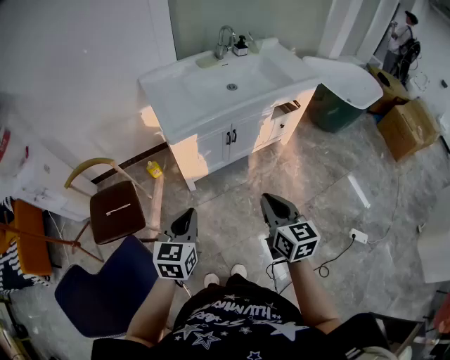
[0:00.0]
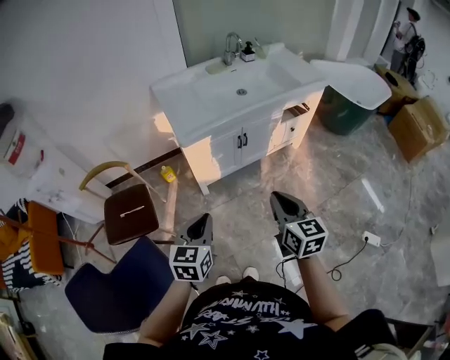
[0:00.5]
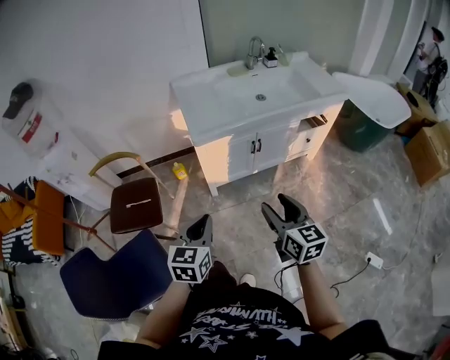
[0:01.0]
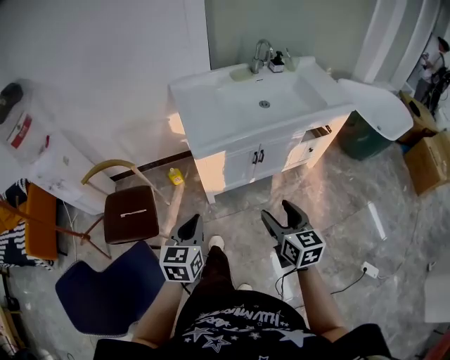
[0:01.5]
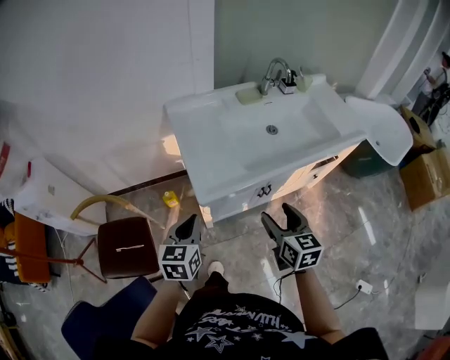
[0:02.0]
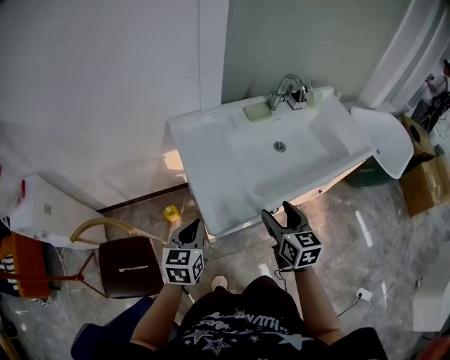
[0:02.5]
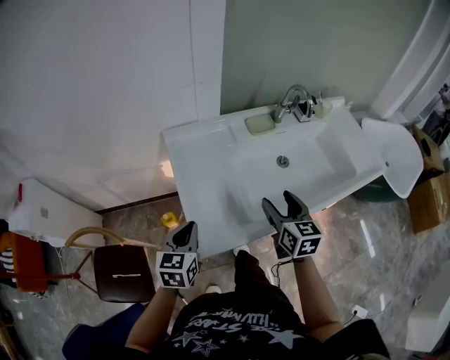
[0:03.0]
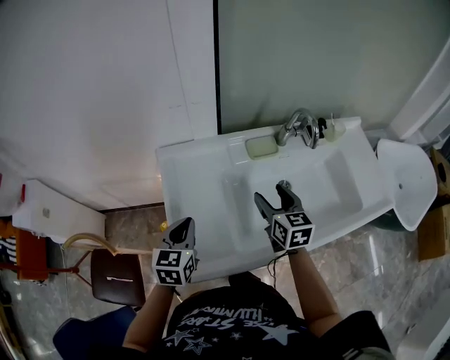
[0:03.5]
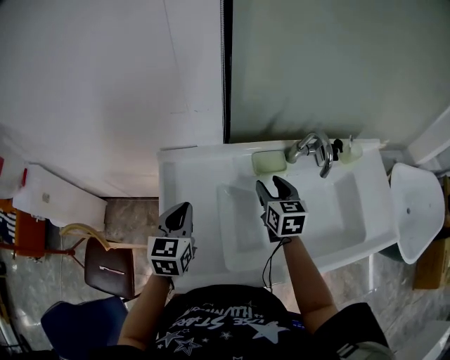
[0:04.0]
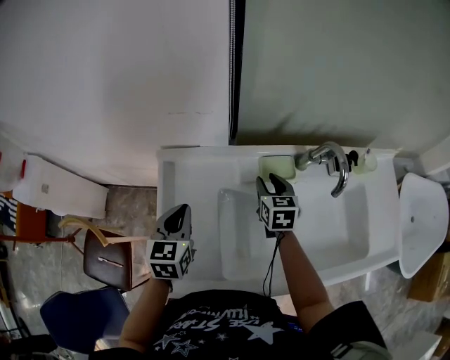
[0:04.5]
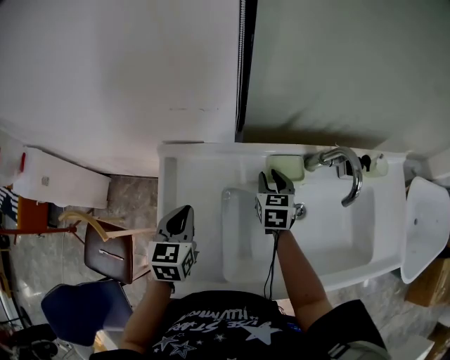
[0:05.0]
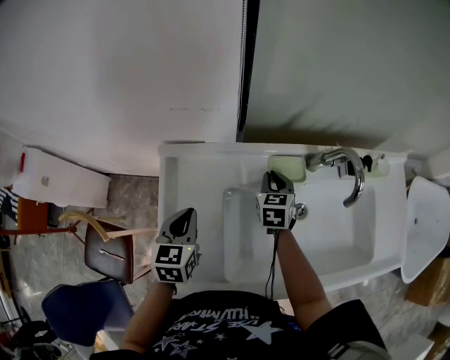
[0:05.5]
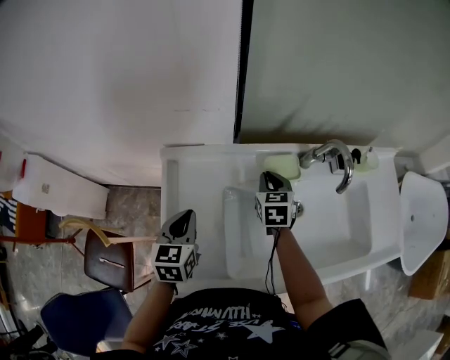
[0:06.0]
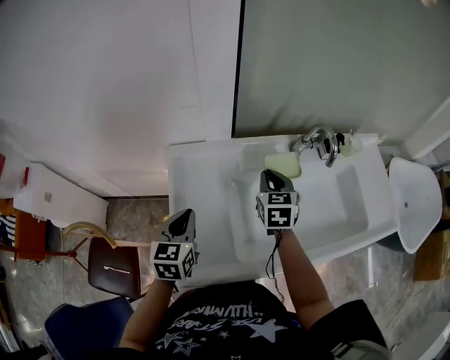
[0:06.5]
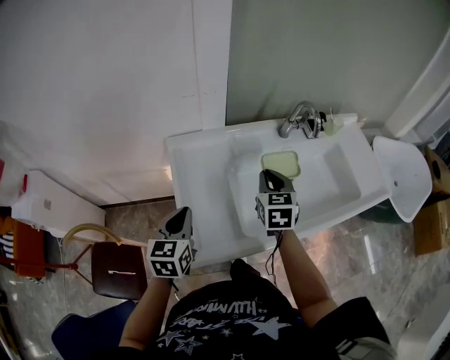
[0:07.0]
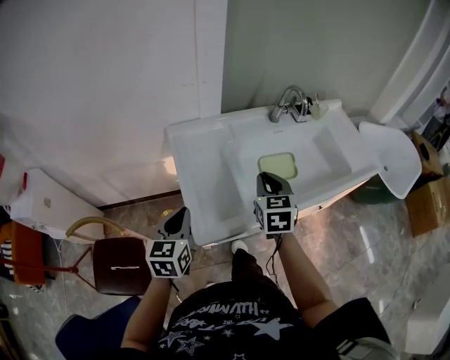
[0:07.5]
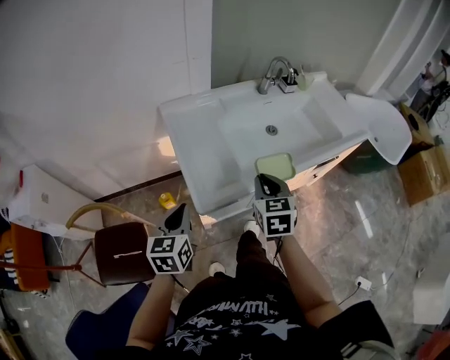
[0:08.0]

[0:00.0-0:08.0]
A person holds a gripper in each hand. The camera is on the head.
0:00.0 to 0:02.0: Both grippers travel together forward, some 30 cm. The right gripper opens its fingers.
0:02.0 to 0:04.0: Both grippers move forward, about 40 cm.
0:04.0 to 0:06.0: The right gripper heads forward and downward, covering approximately 10 cm, and closes up.
0:06.0 to 0:08.0: The two grippers go approximately 35 cm backward.

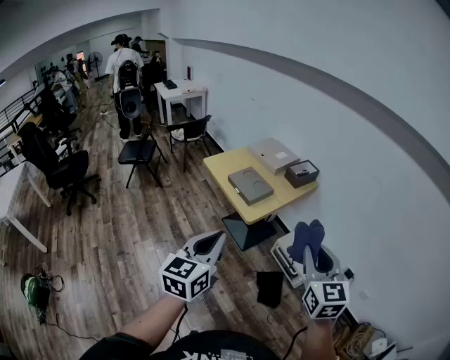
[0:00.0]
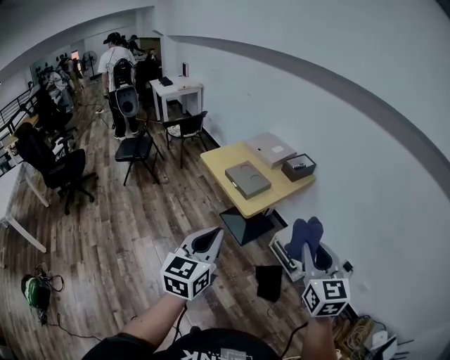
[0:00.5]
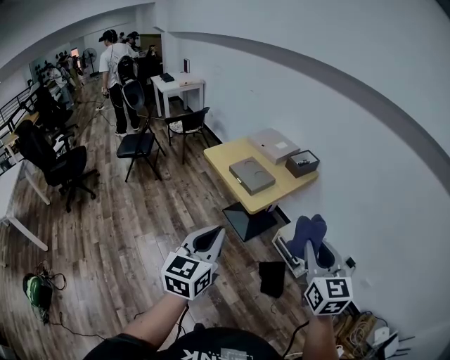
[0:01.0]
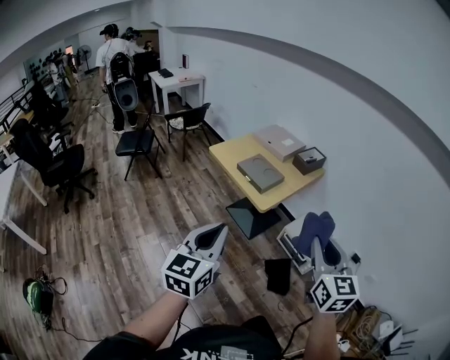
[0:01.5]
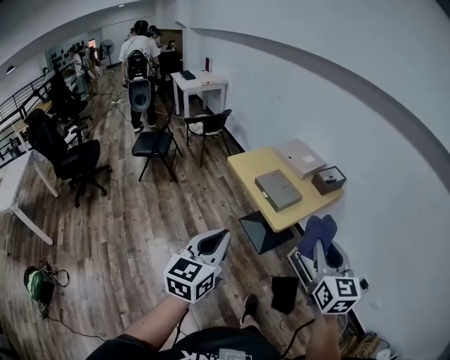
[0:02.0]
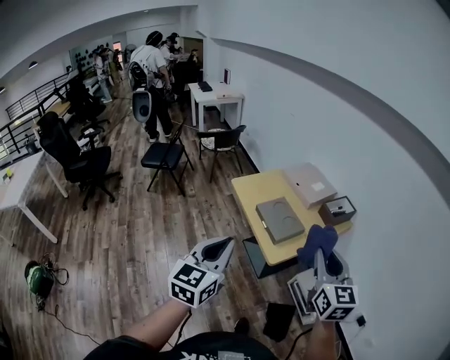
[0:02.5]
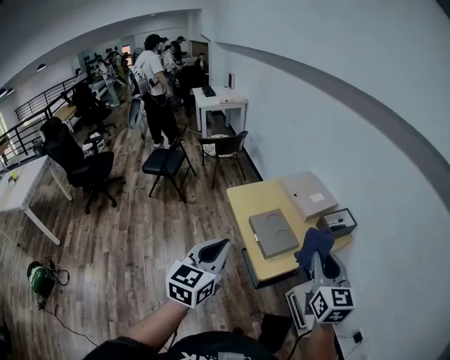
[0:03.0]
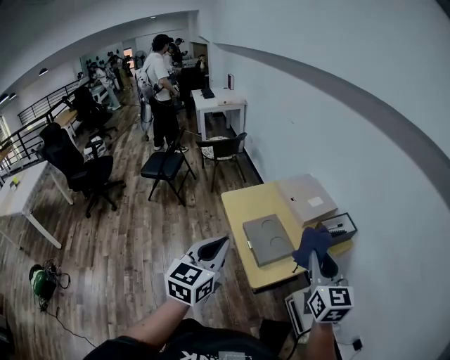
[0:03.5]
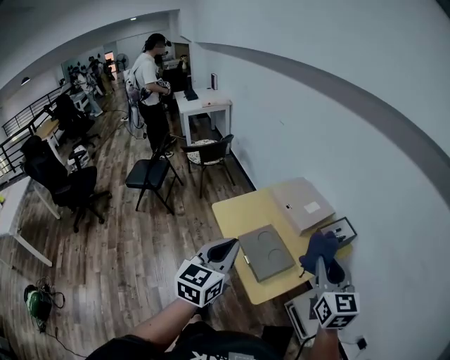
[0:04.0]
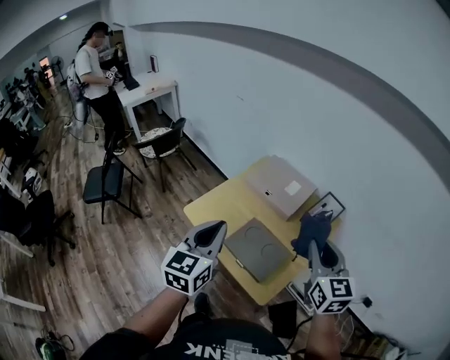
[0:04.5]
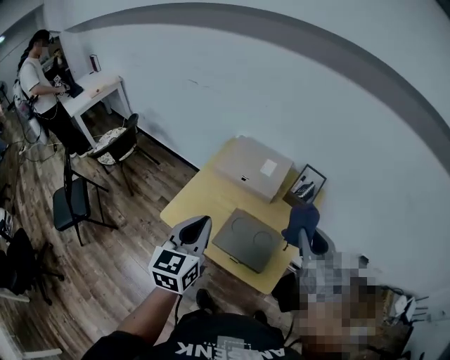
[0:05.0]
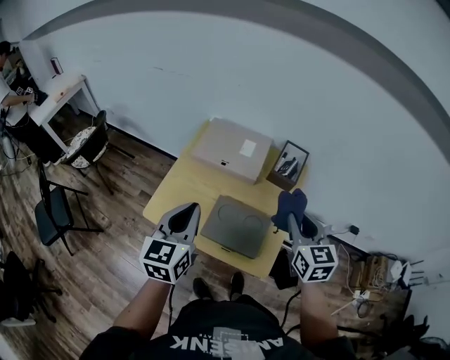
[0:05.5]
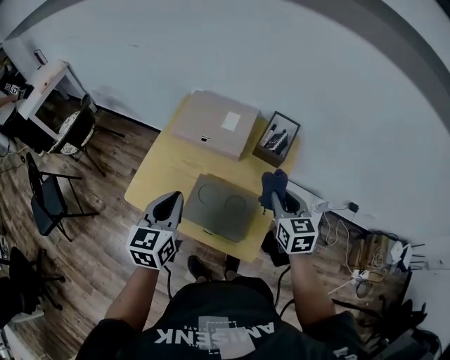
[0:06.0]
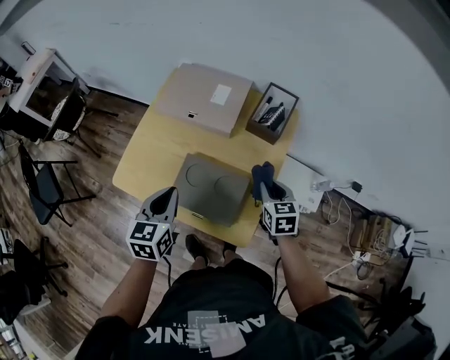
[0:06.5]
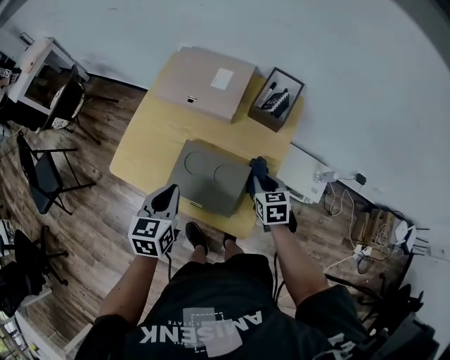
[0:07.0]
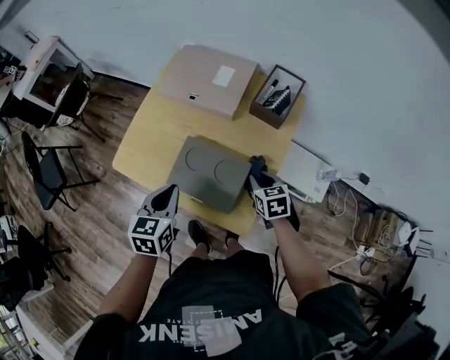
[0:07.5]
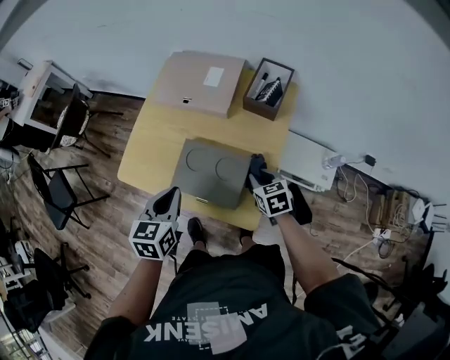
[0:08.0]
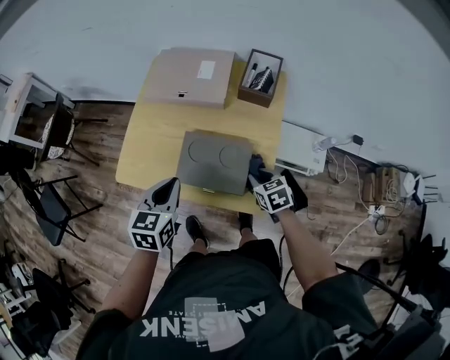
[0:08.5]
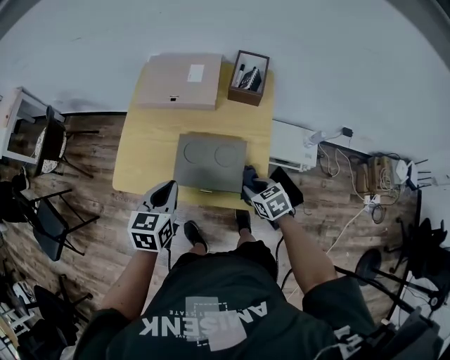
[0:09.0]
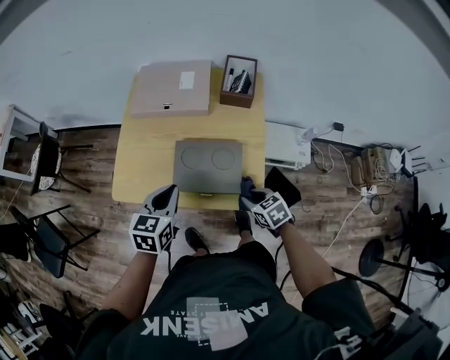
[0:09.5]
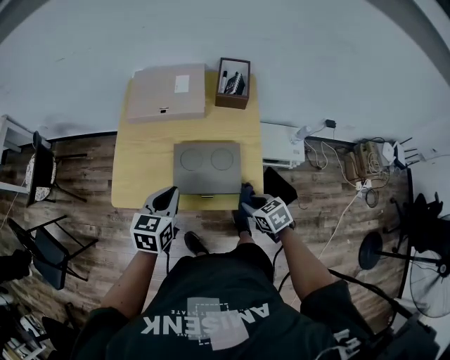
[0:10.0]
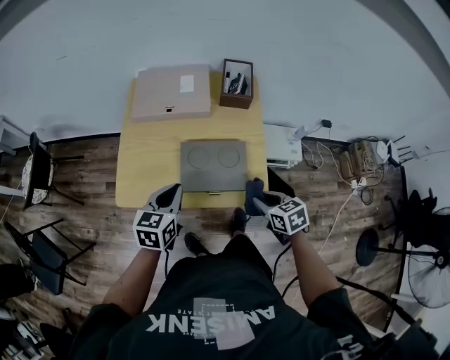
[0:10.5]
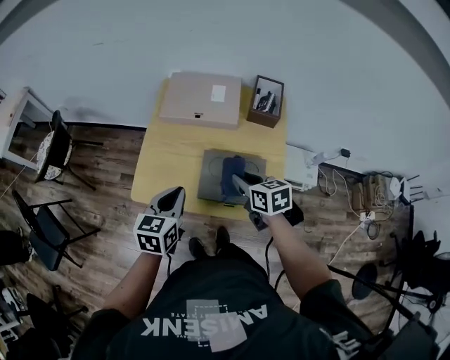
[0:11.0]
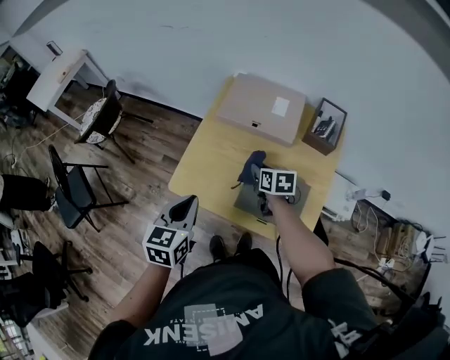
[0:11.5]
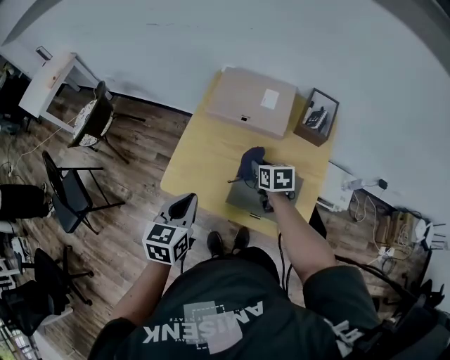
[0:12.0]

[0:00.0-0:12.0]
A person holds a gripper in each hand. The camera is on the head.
0:00.0 to 0:02.0: The left gripper is displaced to the left by some 15 cm. The right gripper is displaced to the left and forward by approximately 15 cm.
0:02.0 to 0:04.0: The grippers both shift forward by some 35 cm.
0:04.0 to 0:06.0: The right gripper is displaced downward by approximately 20 cm, and rotates some 40 degrees, while the left gripper moves some 25 cm, and turns by approximately 30 degrees.
0:06.0 to 0:08.0: The left gripper moves downward and backward, some 10 cm; the right gripper heads downward, covering approximately 20 cm, and swivels roughly 20 degrees.
0:08.0 to 0:10.0: The left gripper turns by some 20 degrees, while the right gripper shifts roughly 15 cm backward and to the left.
0:10.0 to 0:12.0: The left gripper moves to the left, about 10 cm, and changes its angle by roughly 20 degrees, while the right gripper shifts about 30 cm forward and to the left.

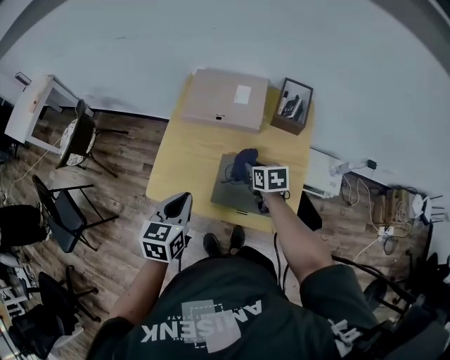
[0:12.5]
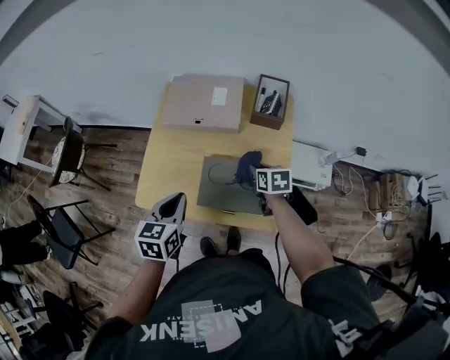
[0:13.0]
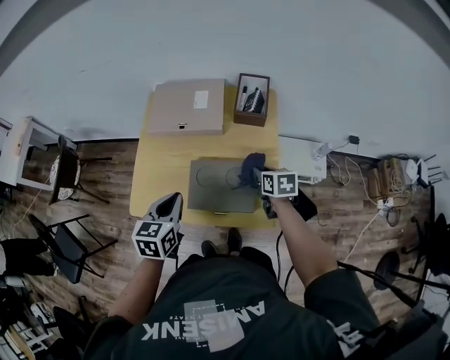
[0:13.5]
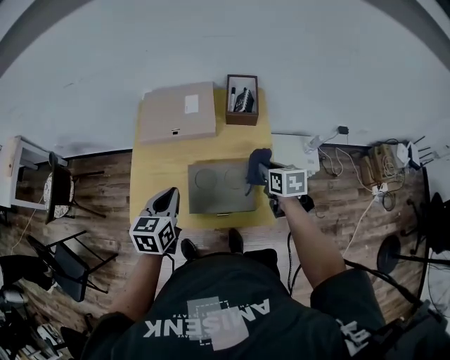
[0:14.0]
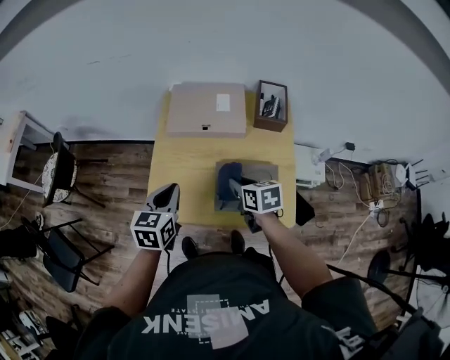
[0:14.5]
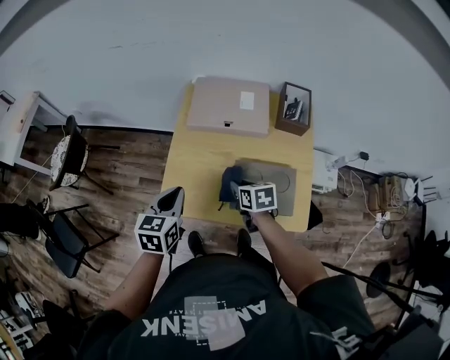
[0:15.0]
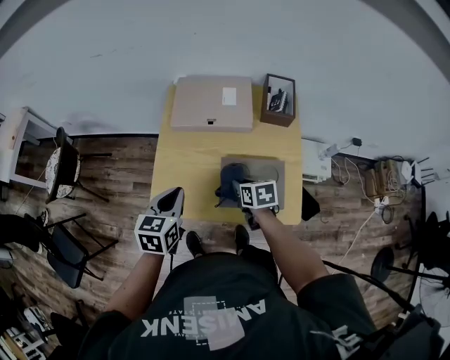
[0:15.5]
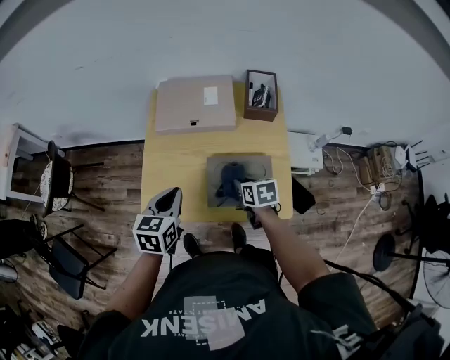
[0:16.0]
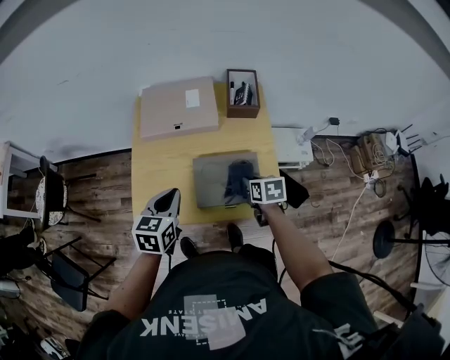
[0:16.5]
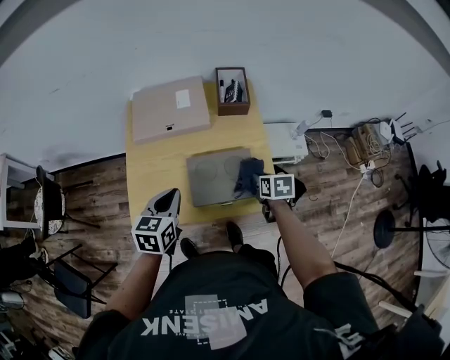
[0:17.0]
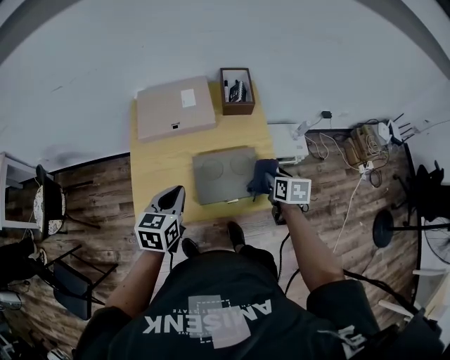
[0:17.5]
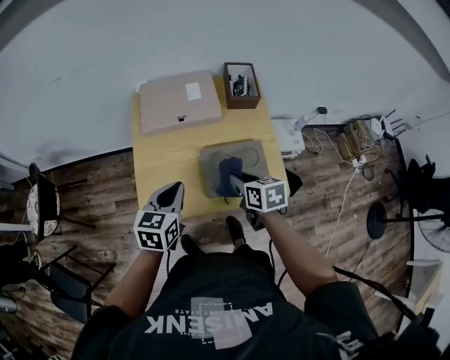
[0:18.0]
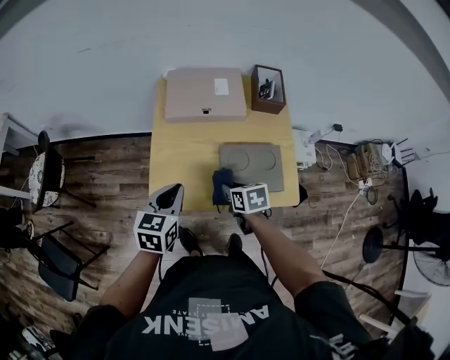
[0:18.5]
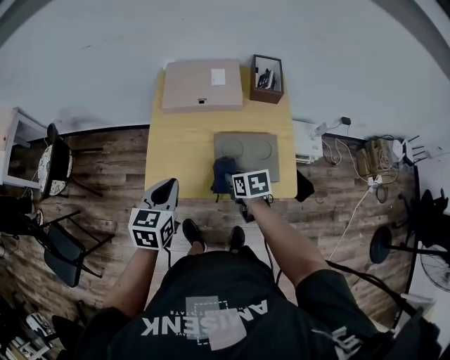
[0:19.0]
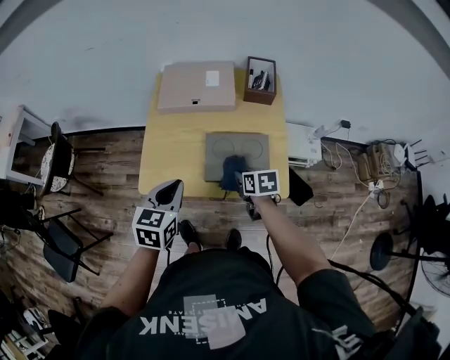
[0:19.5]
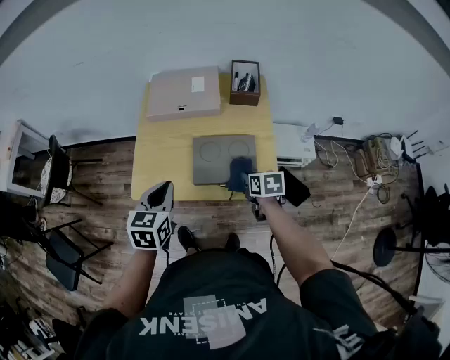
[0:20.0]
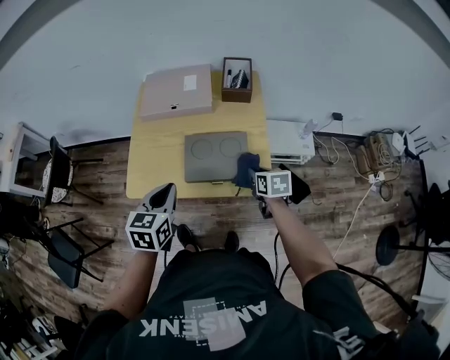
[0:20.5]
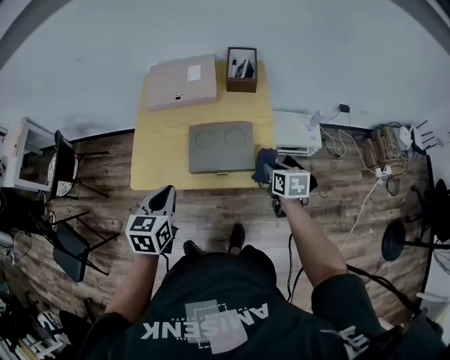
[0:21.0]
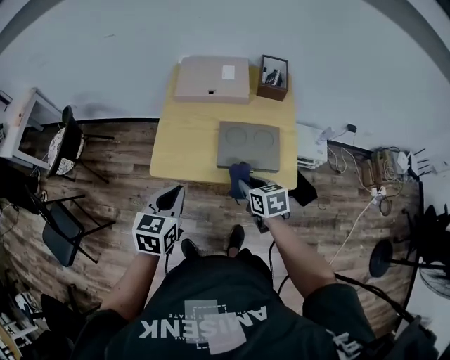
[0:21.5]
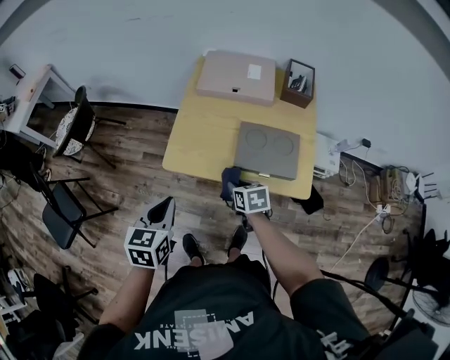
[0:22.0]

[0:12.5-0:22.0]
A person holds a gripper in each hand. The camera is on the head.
0:12.5 to 0:14.5: The left gripper travels forward and to the left by roughly 10 cm. Meanwhile the right gripper moves upward and backward, approximately 10 cm, and reaches roughly 15 cm to the right, then returns.
0:14.5 to 0:16.5: The right gripper shifts roughly 15 cm to the right and downward. The left gripper travels to the right by some 5 cm.
0:16.5 to 0:18.0: The right gripper is displaced to the left and upward by about 15 cm.
0:18.0 to 0:20.0: The right gripper shifts about 15 cm to the right and downward. The left gripper is displaced backward by roughly 10 cm, and travels to the left and back again, about 5 cm each way.
0:20.0 to 0:22.0: The right gripper moves to the left, some 20 cm, while the left gripper goes about 15 cm to the left and backward.
